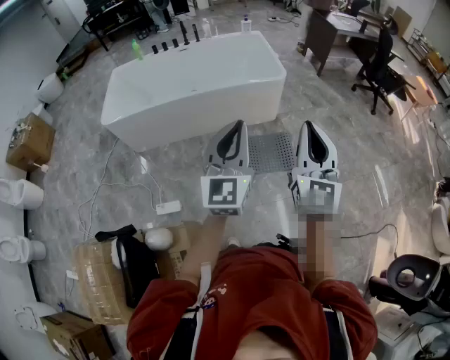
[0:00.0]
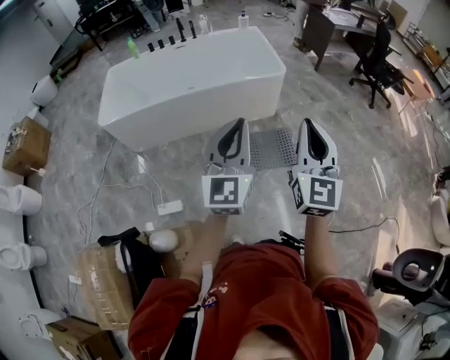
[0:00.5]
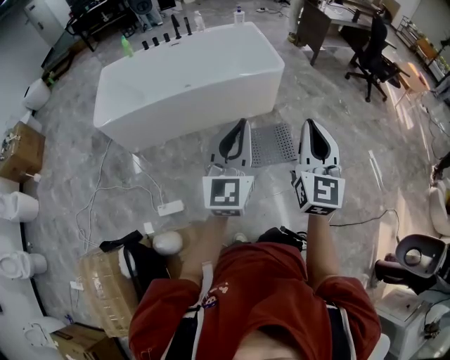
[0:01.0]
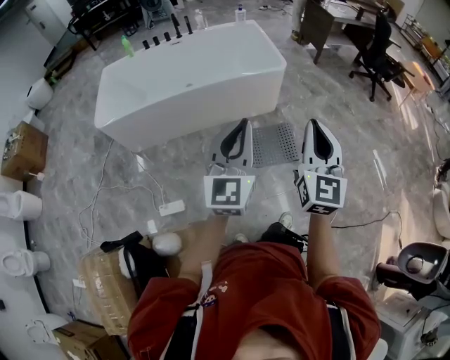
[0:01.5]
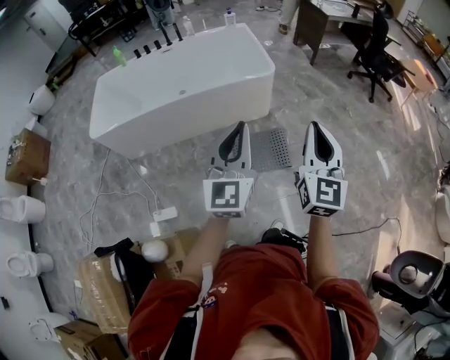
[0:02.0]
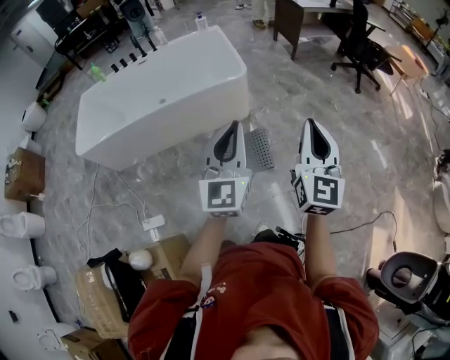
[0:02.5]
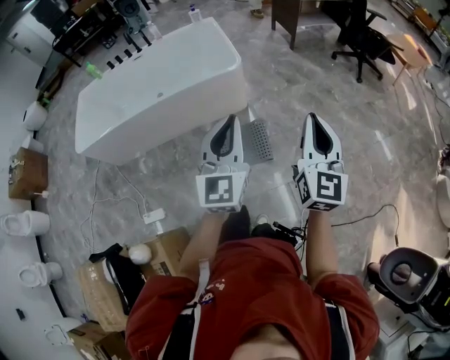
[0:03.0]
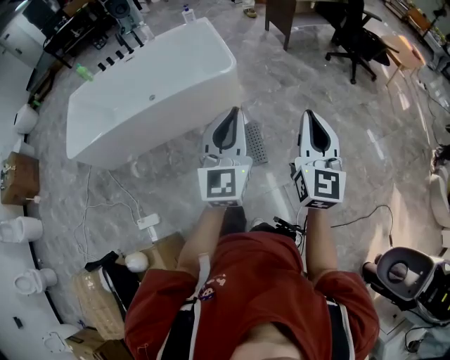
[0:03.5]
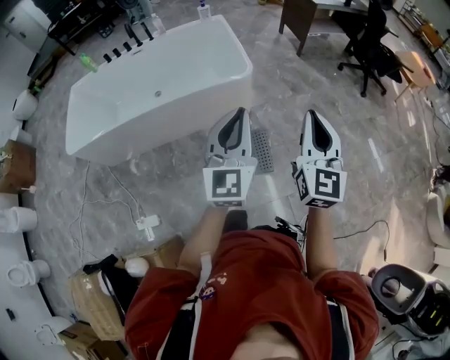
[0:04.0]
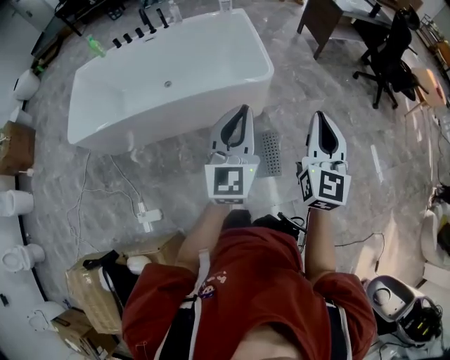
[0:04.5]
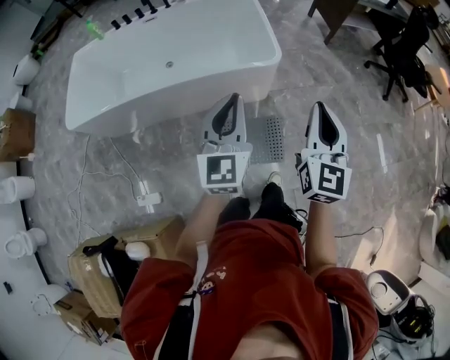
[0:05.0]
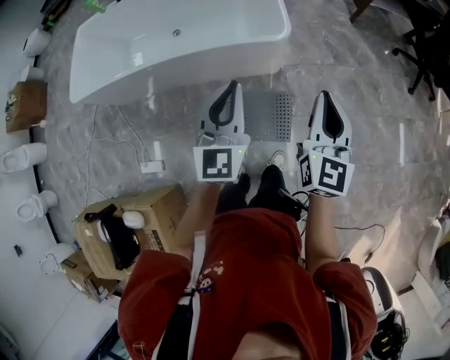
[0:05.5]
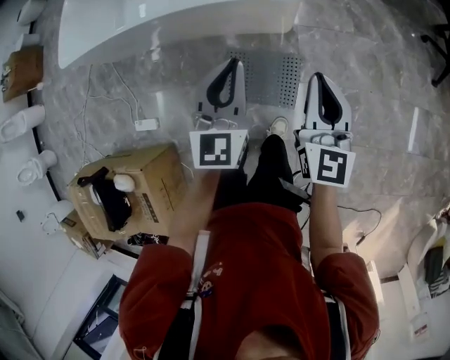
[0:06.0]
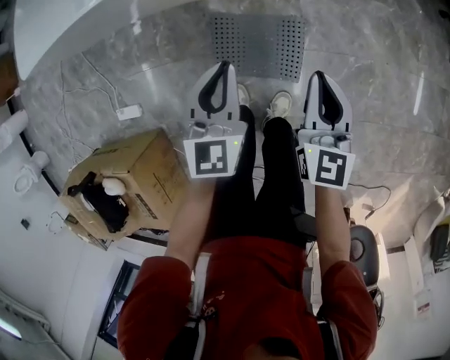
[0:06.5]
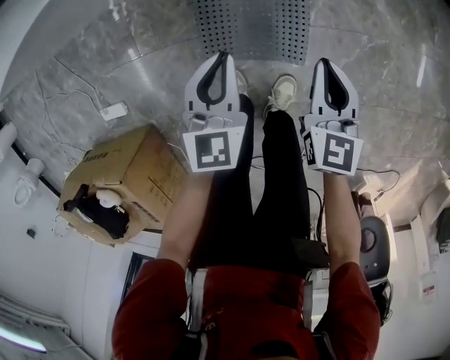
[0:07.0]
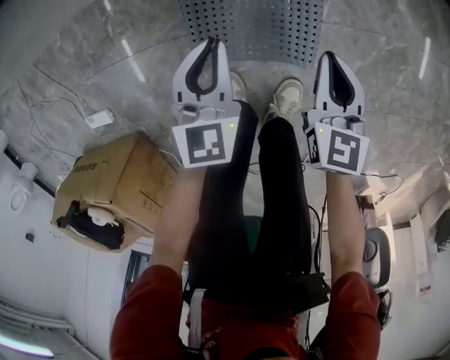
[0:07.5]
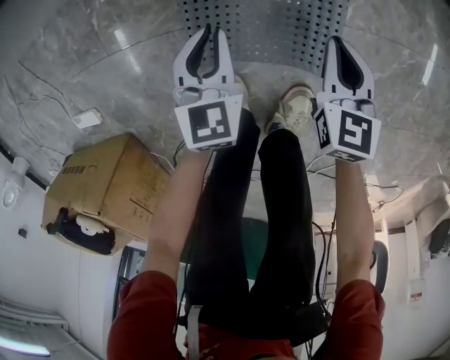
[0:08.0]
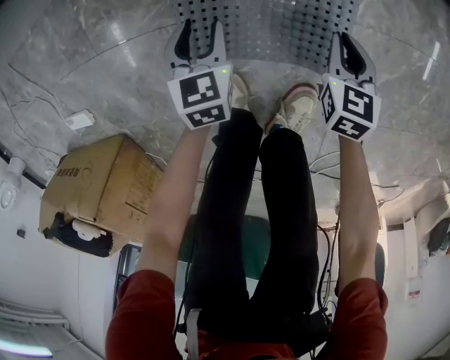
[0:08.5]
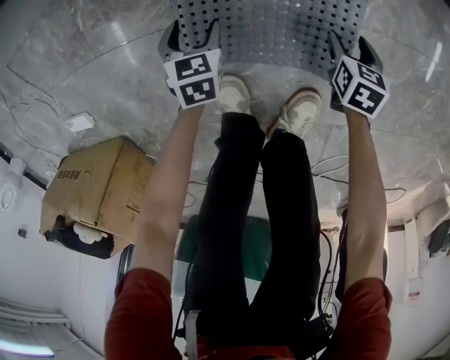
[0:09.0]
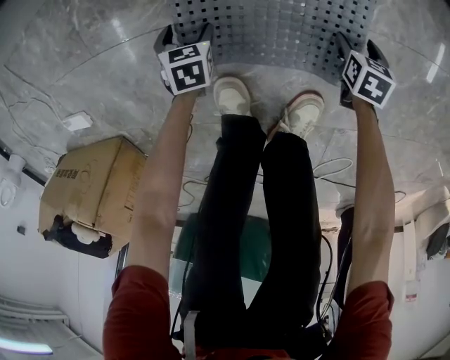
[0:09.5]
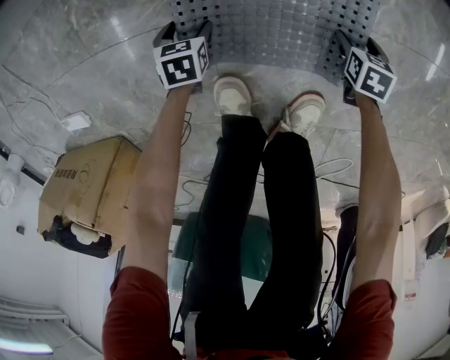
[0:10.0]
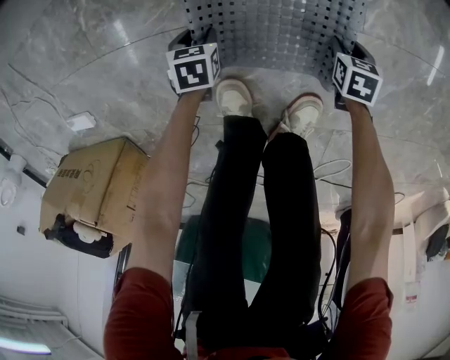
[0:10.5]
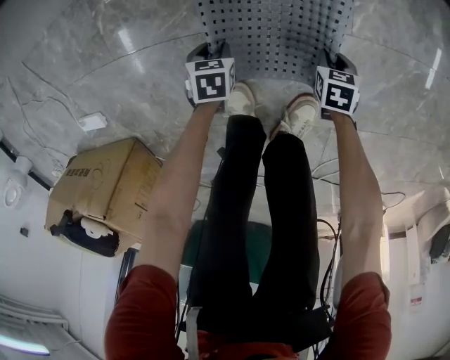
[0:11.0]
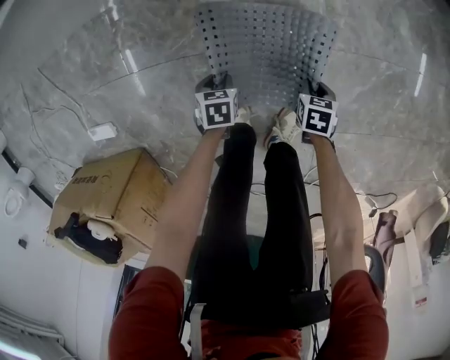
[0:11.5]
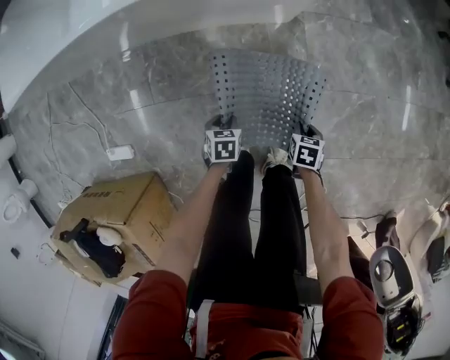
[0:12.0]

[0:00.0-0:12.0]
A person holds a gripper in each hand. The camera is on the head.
0:00.0 to 0:02.0: Both grippers travel together forward and to the right, approximately 10 cm.
0:02.0 to 0:04.0: Both grippers move forward and to the right, roughly 20 cm.
0:04.0 to 0:06.0: The right gripper is displaced forward and downward by about 30 cm, and turns by roughly 30 degrees. Meanwhile the left gripper shifts about 25 cm downward and forward, and swivels some 30 degrees.
0:06.0 to 0:08.0: The two grippers go roughly 60 cm downward. The left gripper changes its angle by some 30 degrees. The right gripper angles its fingers downward, by roughly 30 degrees.
0:08.0 to 0:10.0: The right gripper is displaced downward by some 25 cm, tilts its fingers approximately 30 degrees downward, and opens its fingers. Meanwhile the left gripper travels downward and to the left by some 30 cm, tips its fingers downward by some 30 degrees, and opens its fingers.
0:10.0 to 0:12.0: The grippers both shift upward by approximately 30 cm. The right gripper closes. The left gripper closes its fingers.

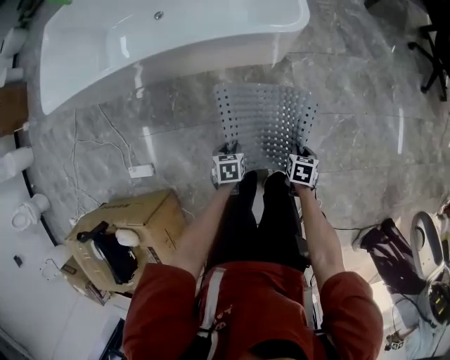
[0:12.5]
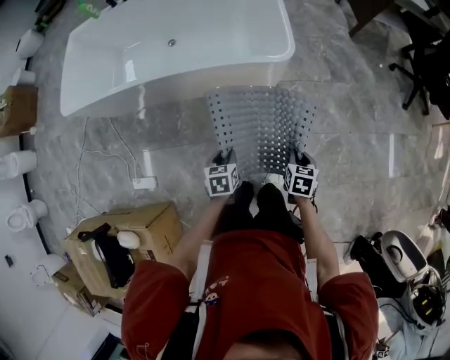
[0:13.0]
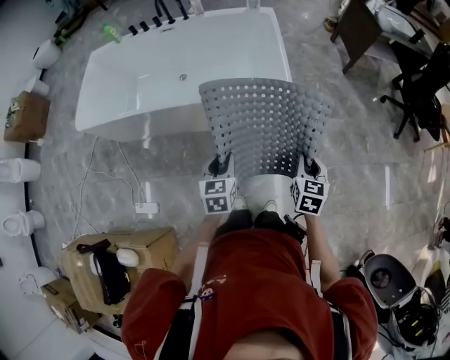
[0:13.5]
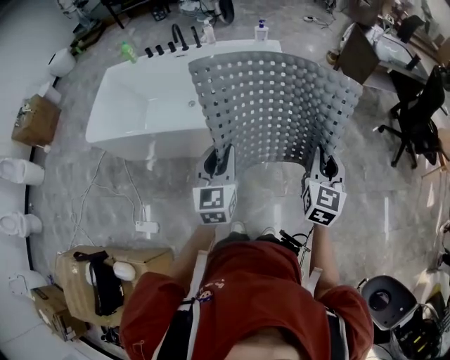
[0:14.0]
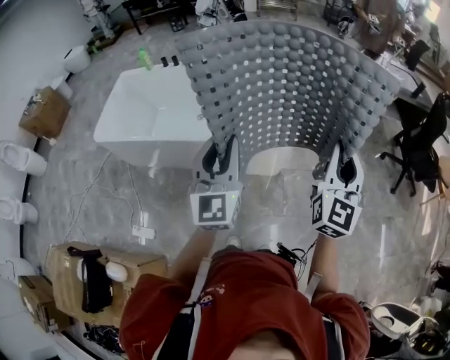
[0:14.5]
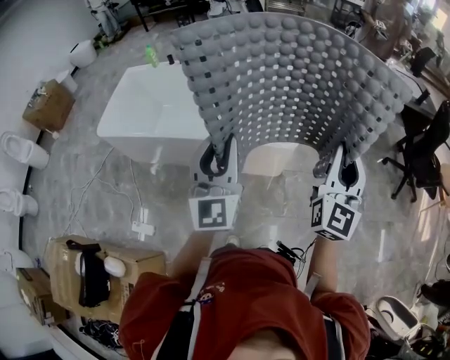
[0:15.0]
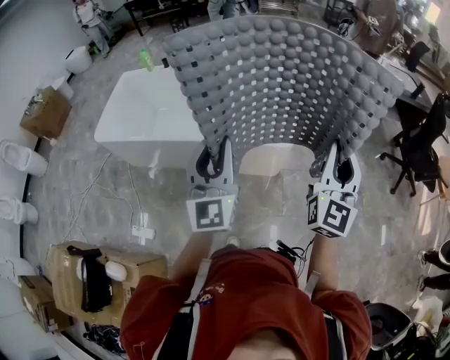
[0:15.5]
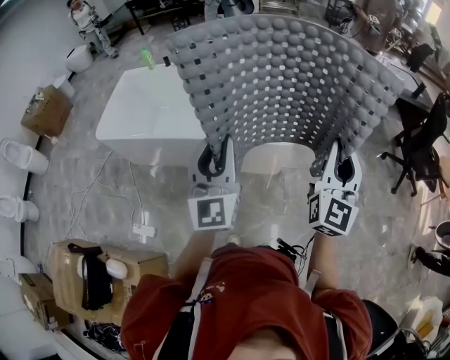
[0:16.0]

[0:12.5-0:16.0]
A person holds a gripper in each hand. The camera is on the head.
0:12.5 to 0:14.5: Both grippers travel together upward, some 70 cm. The left gripper tilts its fingers roughly 80 degrees upward. Meanwhile the right gripper angles its fingers upward, by about 80 degrees.
0:14.5 to 0:16.0: The grippers move only a little.

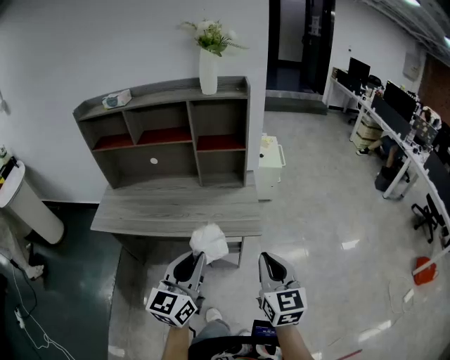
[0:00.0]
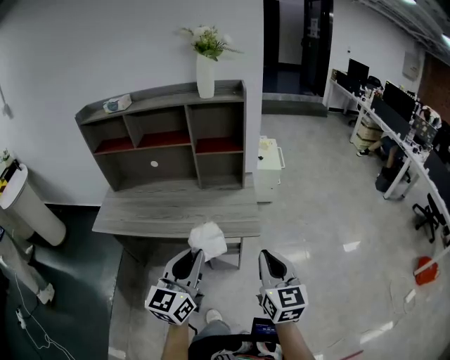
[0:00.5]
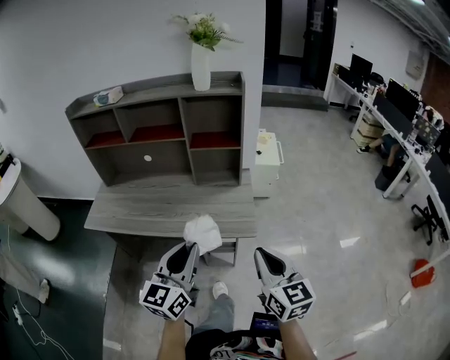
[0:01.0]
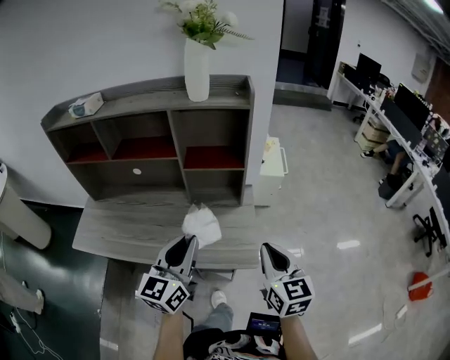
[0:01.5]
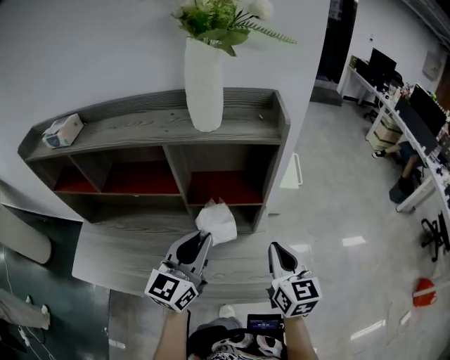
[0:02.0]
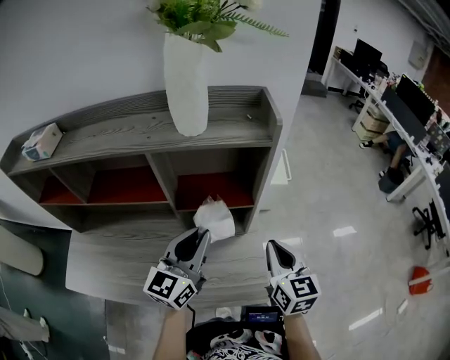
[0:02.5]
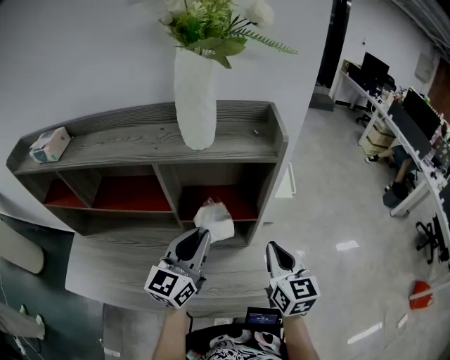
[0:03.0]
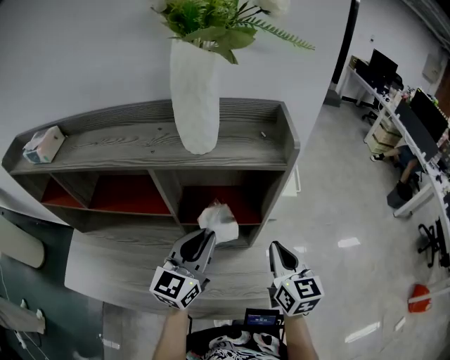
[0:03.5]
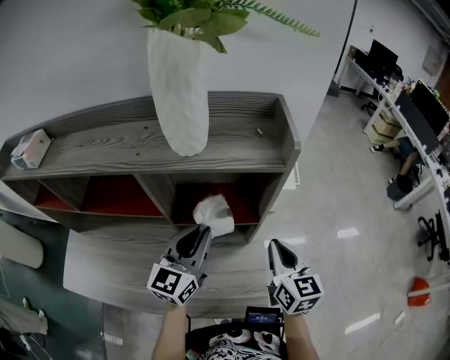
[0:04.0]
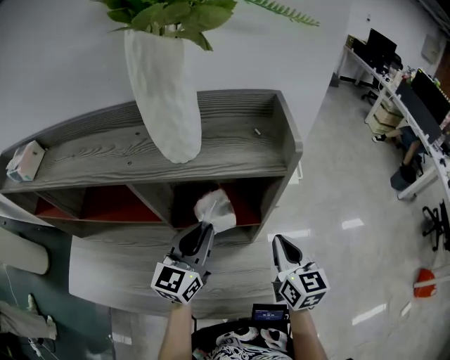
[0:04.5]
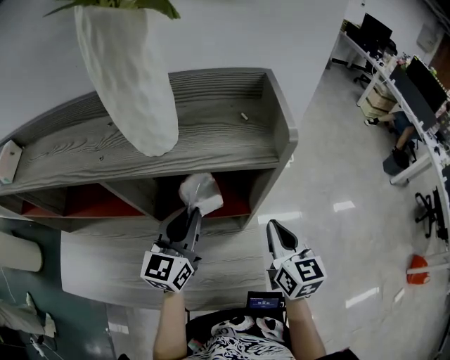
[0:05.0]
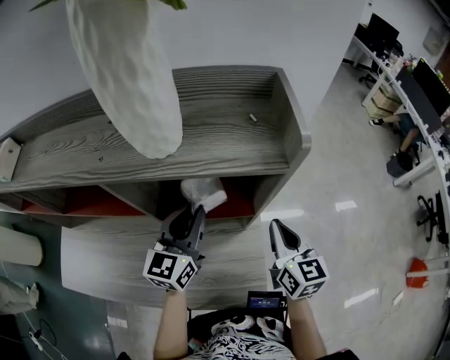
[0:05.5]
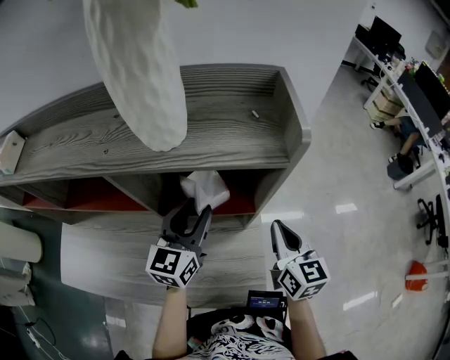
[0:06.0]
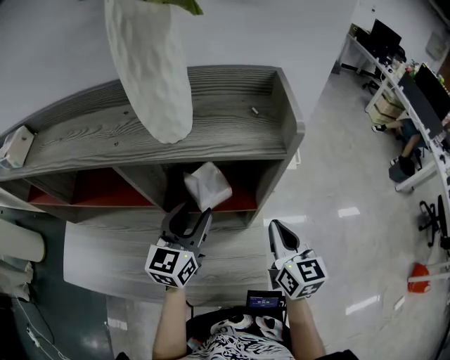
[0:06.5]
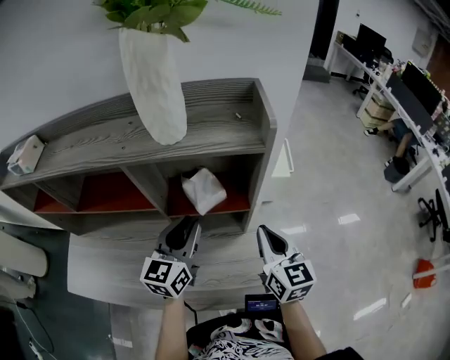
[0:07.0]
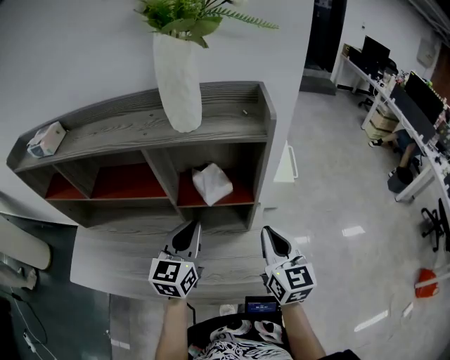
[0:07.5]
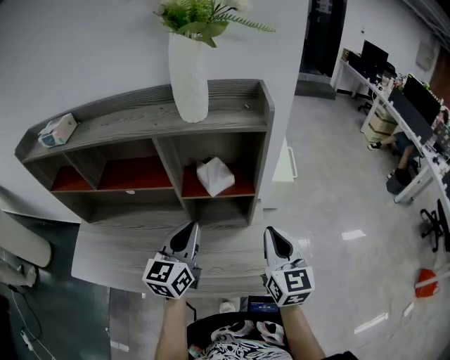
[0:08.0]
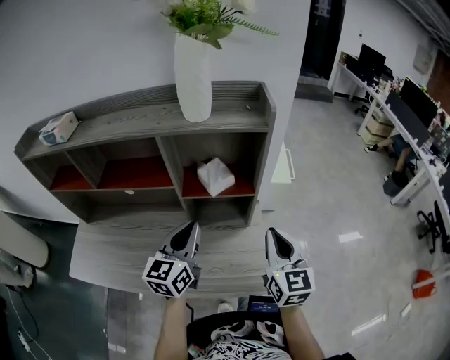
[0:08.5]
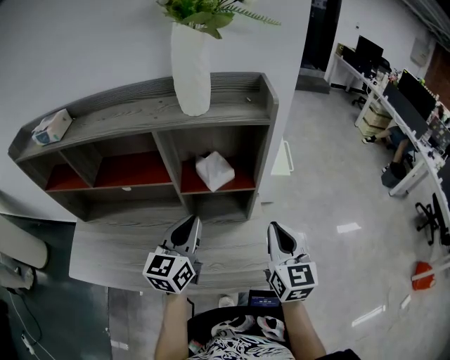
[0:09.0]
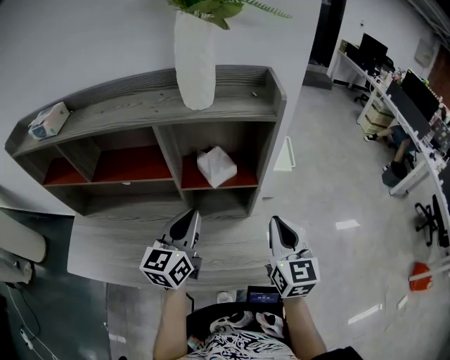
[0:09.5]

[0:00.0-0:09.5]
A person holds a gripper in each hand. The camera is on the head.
0:00.0 to 0:02.0: The two grippers go some 40 cm forward.
0:02.0 to 0:04.0: Both grippers travel together forward, roughly 10 cm.
0:04.0 to 0:05.5: The left gripper is displaced forward by roughly 5 cm.
0:05.5 to 0:07.5: Both grippers move backward, roughly 10 cm. The left gripper opens, then closes once more.
0:07.5 to 0:09.5: There are only small adjustments of the grippers.

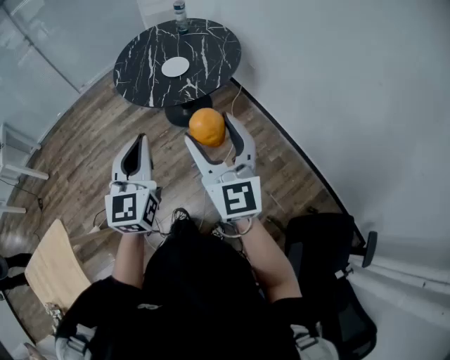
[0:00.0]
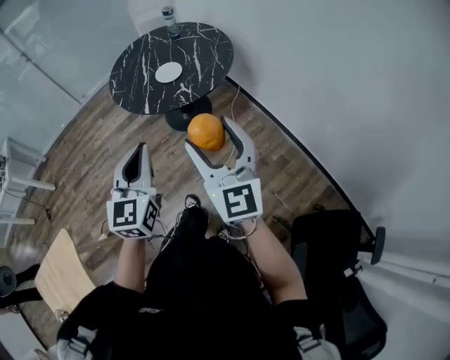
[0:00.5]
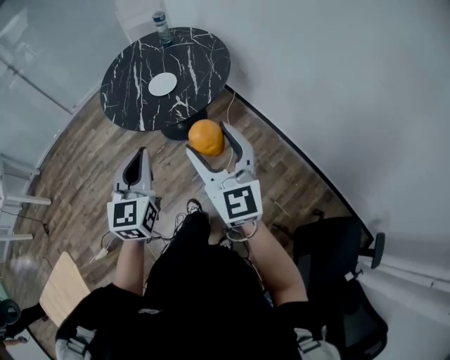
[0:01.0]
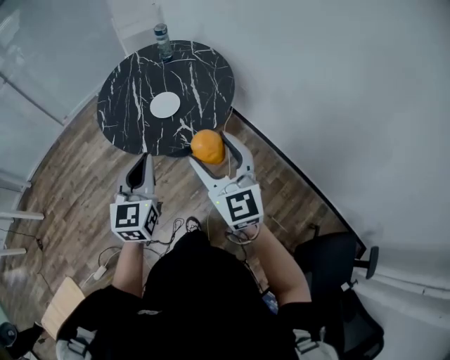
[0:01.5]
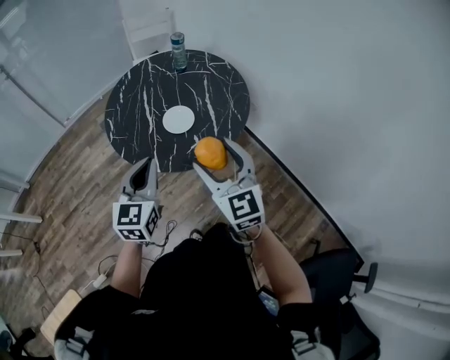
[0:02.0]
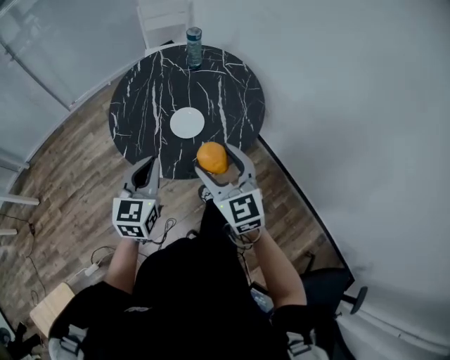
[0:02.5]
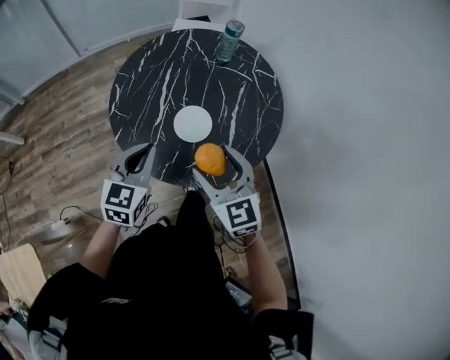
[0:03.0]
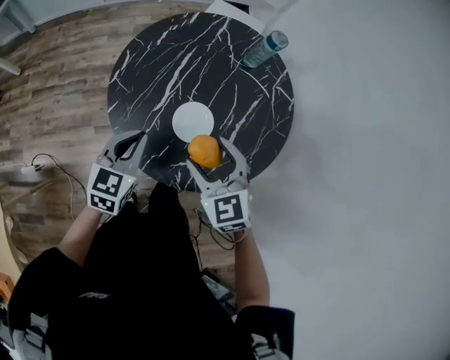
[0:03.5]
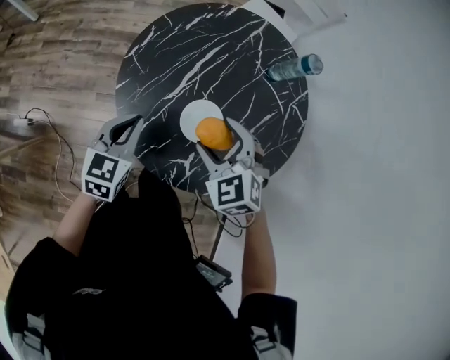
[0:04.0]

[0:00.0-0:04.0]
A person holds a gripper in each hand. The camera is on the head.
0:00.0 to 0:02.0: Both grippers move forward, some 30 cm.
0:02.0 to 0:04.0: The left gripper moves about 25 cm, and swivels about 40 degrees, while the right gripper changes place by roughly 35 cm, and tilts its fingers roughly 40 degrees downward.
